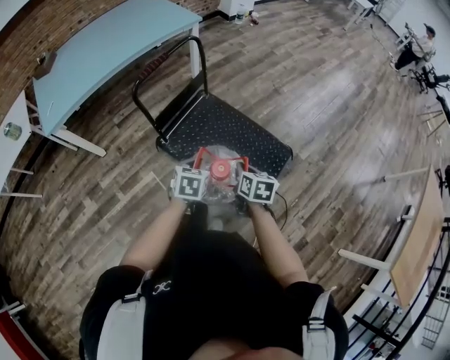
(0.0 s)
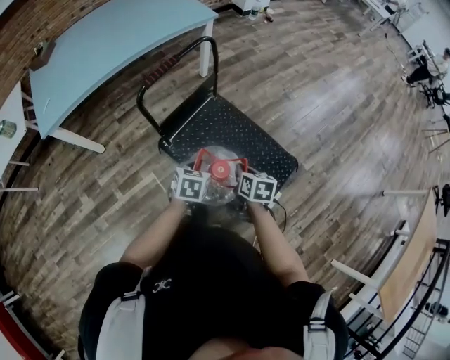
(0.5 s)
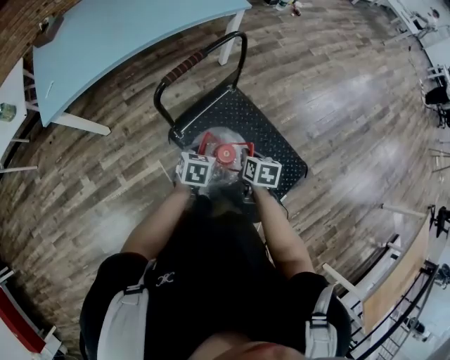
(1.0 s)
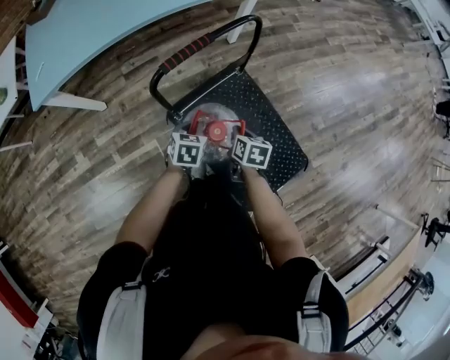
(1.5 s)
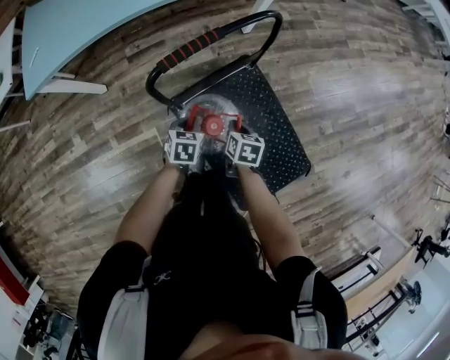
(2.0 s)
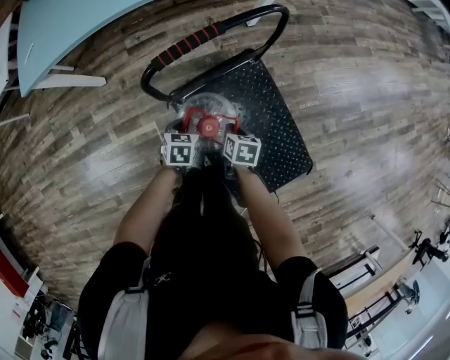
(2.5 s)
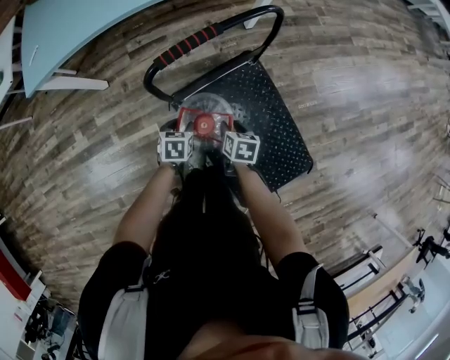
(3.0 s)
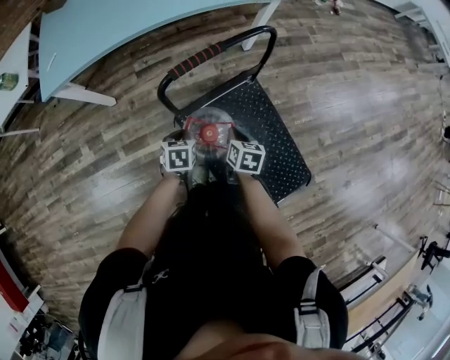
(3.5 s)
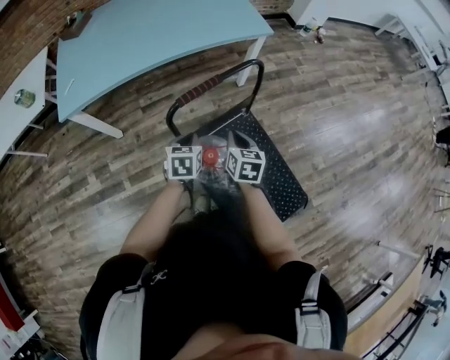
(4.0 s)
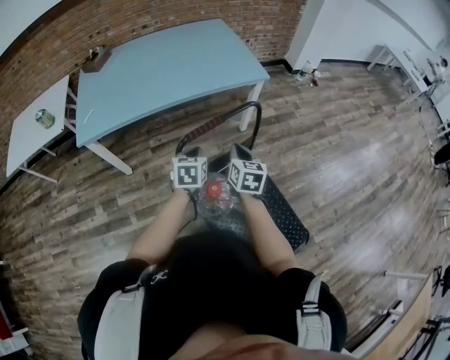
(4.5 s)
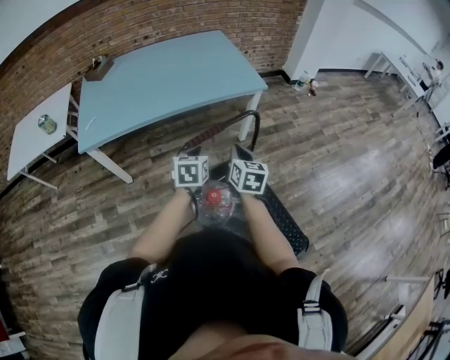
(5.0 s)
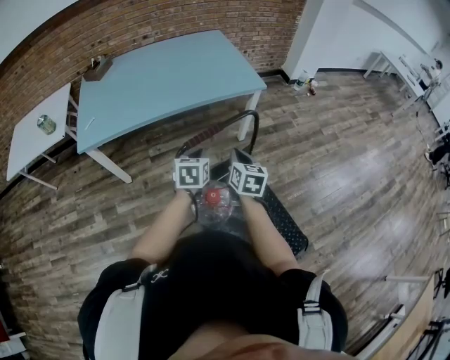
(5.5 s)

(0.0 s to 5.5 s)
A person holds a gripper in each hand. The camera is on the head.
0.0 s - 2.0 s: The grippers both shift forward, downward and to the left by some 35 cm. The left gripper rotates about 20 degrees. The right gripper changes its angle by approximately 20 degrees.
2.0 s - 3.5 s: The left gripper shifts roughly 5 cm to the left, and opens and closes again. The right gripper goes about 5 cm upward, and opens, then closes again.
3.5 s - 5.5 s: The left gripper goes about 25 cm upward and forward, and turns by some 30 degrees. Meanwhile the right gripper heads upward, covering approximately 25 cm, and changes its angle by approximately 30 degrees.

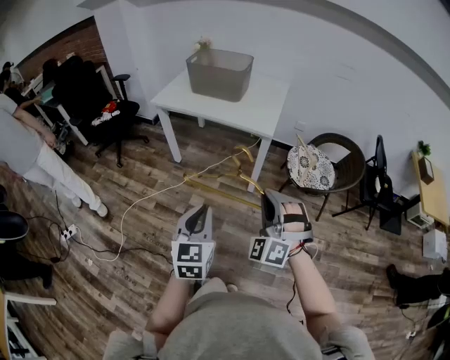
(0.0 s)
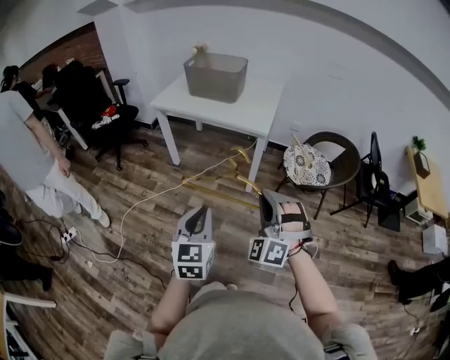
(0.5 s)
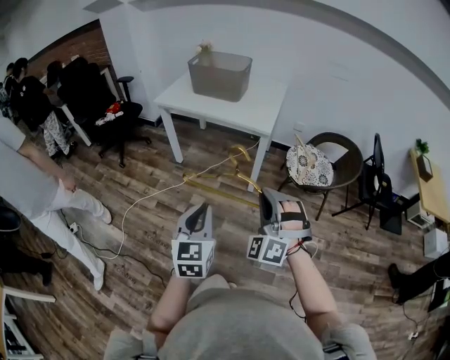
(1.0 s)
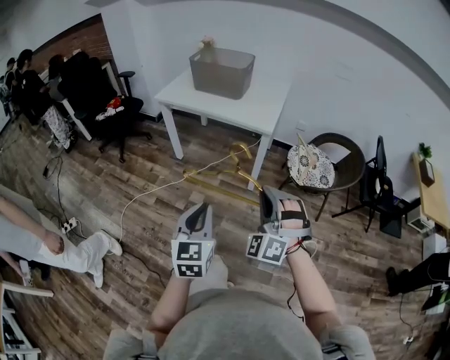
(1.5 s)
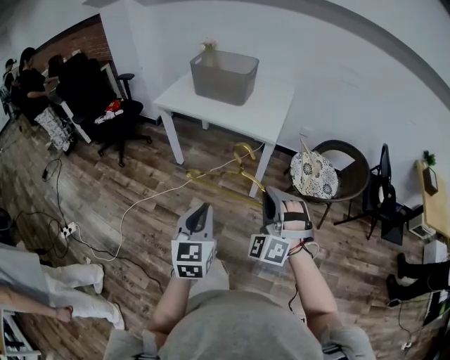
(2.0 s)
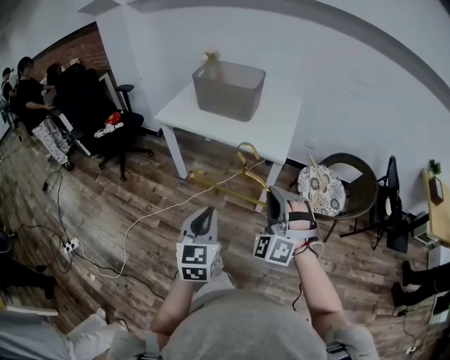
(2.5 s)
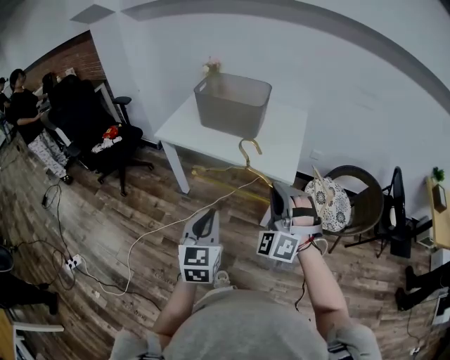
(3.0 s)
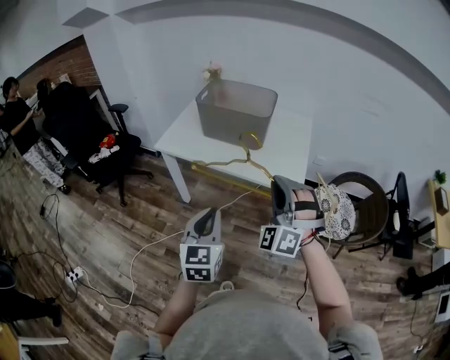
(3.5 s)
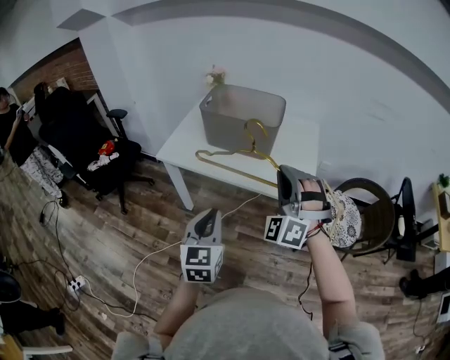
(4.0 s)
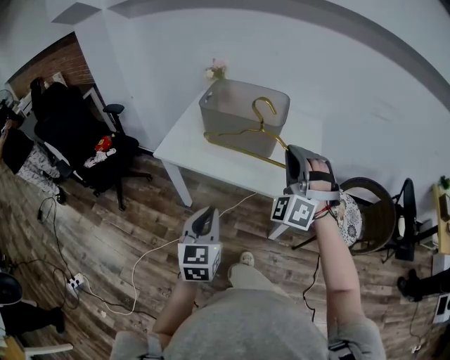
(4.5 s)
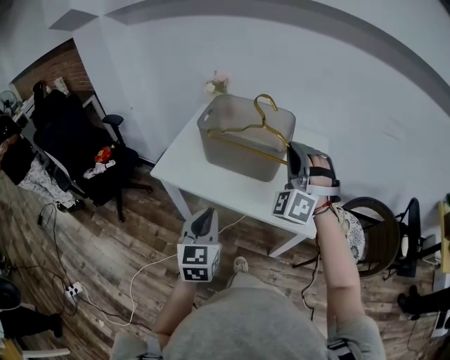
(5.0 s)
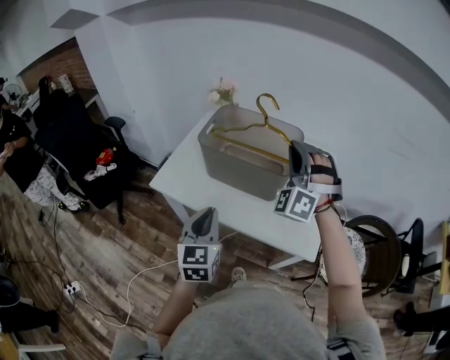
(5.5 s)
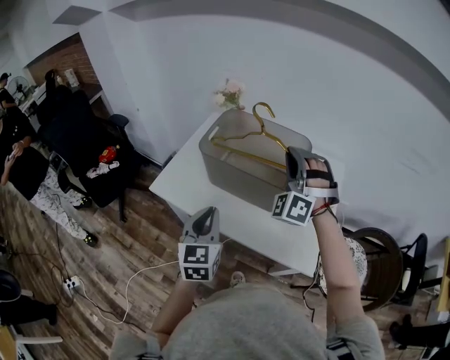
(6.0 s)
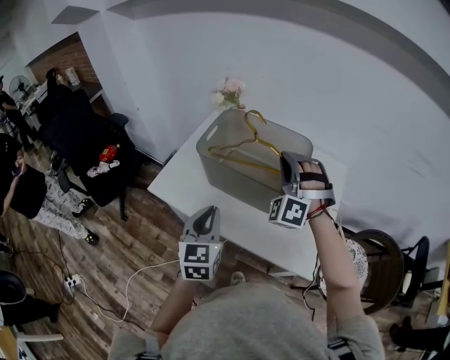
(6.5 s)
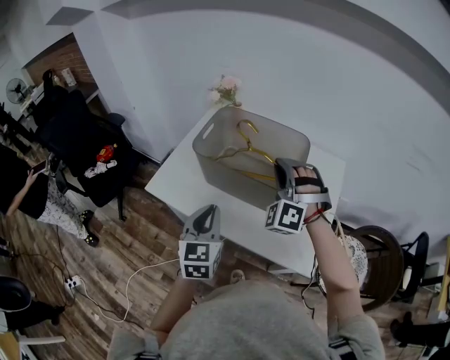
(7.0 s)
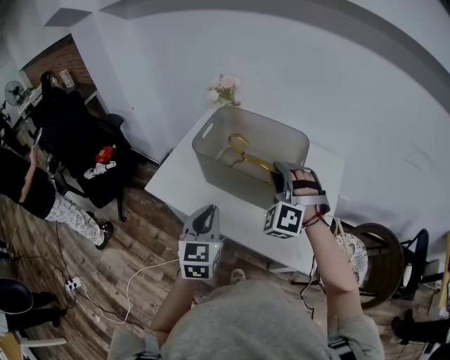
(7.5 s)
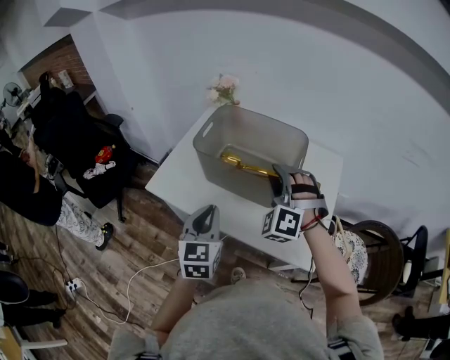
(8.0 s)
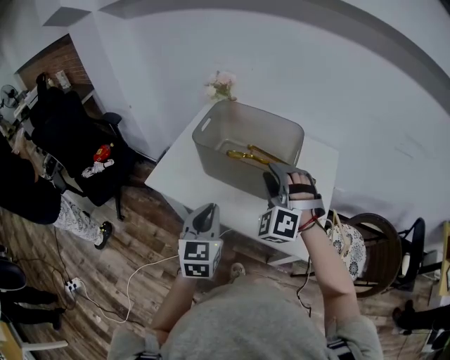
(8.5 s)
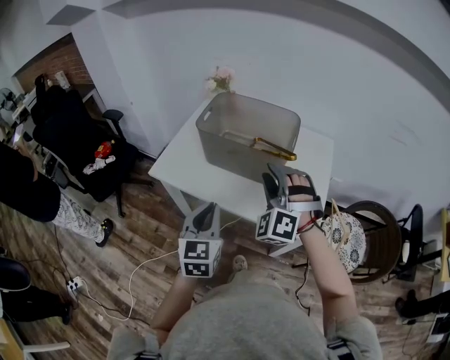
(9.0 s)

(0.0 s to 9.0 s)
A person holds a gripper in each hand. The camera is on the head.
0.0 s - 2.0 s: The left gripper travels backward and back again, some 5 cm each way.
2.0 s - 4.5 s: The pair of grippers is taken forward and to the left, roughly 40 cm.
4.5 s - 7.0 s: Both grippers move forward, roughly 25 cm.
7.0 s - 9.0 s: Both grippers travel together backward, about 15 cm. The right gripper opens up.

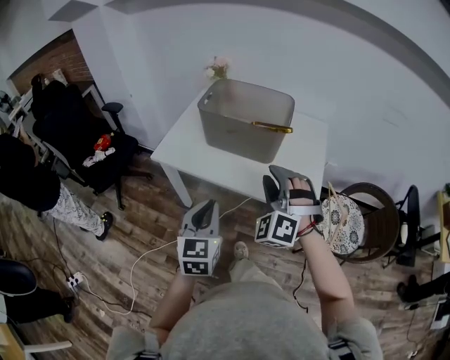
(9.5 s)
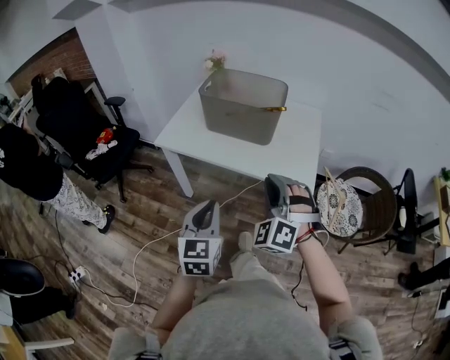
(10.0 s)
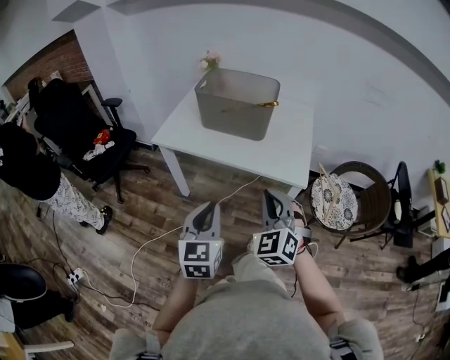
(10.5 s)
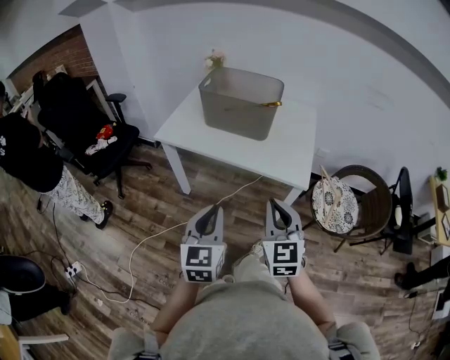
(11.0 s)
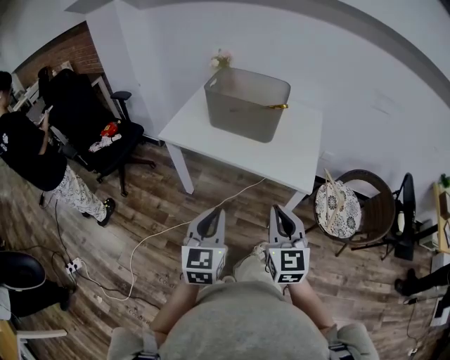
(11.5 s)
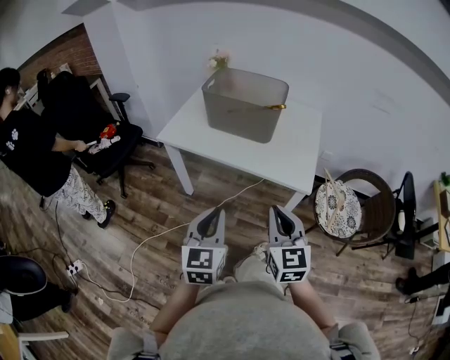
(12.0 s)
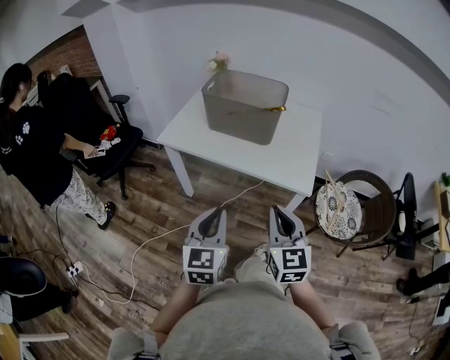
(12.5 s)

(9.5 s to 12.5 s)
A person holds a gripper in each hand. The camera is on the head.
9.5 s - 11.0 s: Both grippers travel together backward, about 20 cm. The right gripper twists some 60 degrees clockwise, seen from behind, and closes up.
11.0 s - 12.5 s: The grippers stay close to where they were, moving slightly.

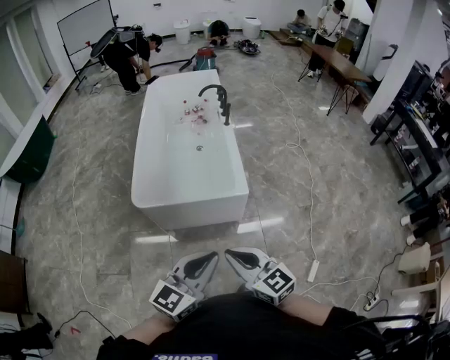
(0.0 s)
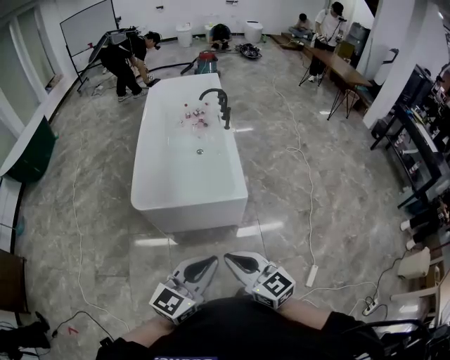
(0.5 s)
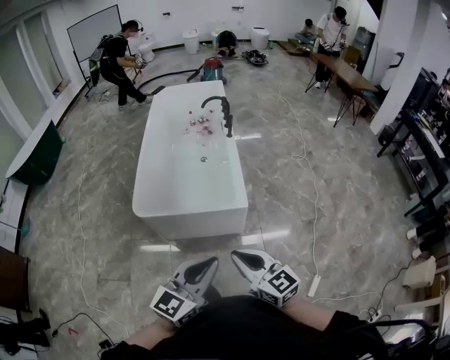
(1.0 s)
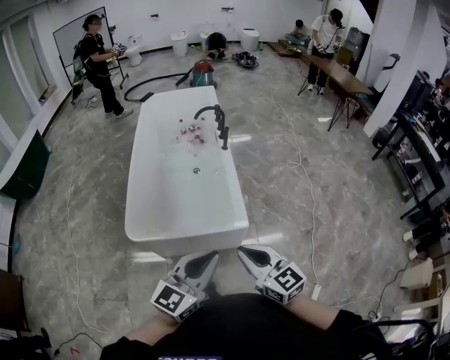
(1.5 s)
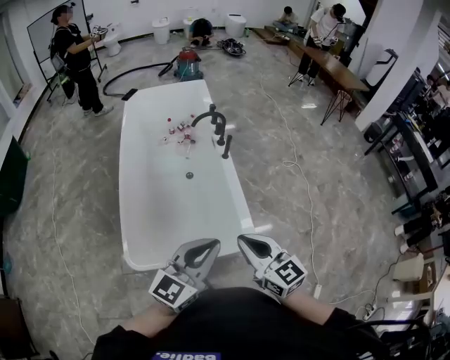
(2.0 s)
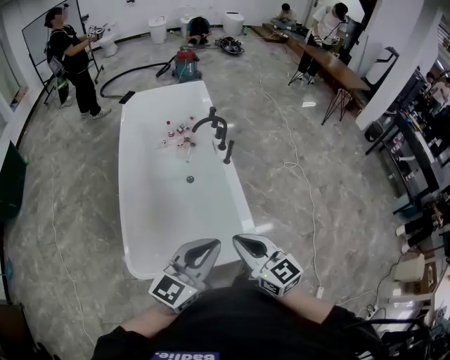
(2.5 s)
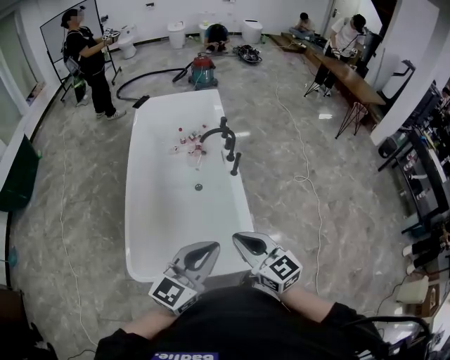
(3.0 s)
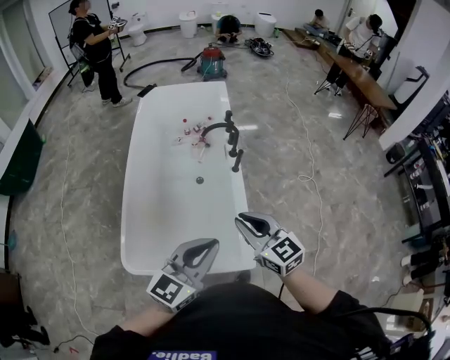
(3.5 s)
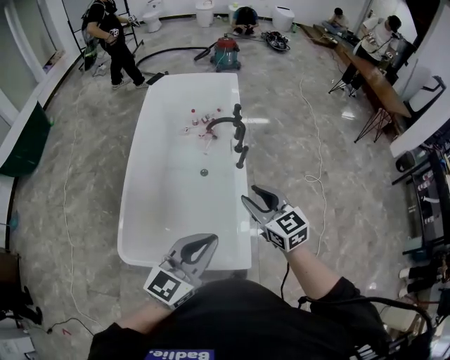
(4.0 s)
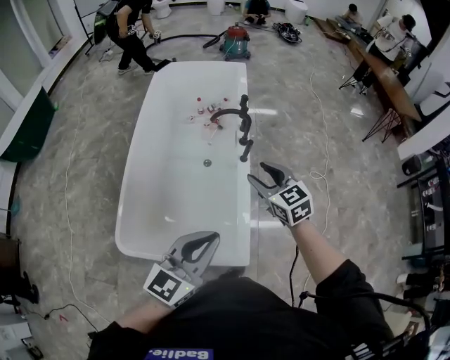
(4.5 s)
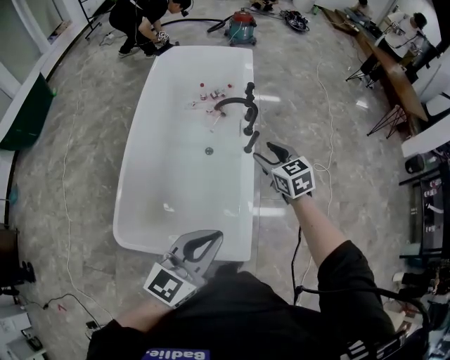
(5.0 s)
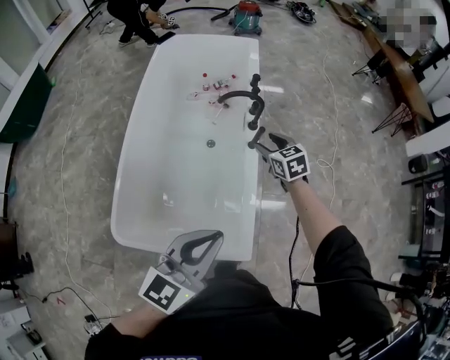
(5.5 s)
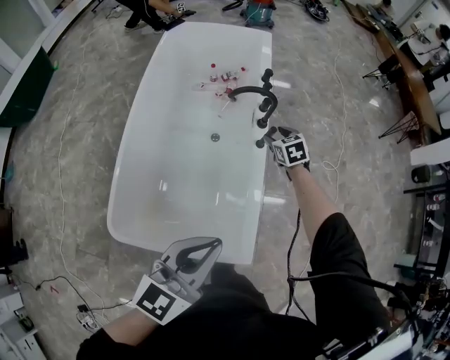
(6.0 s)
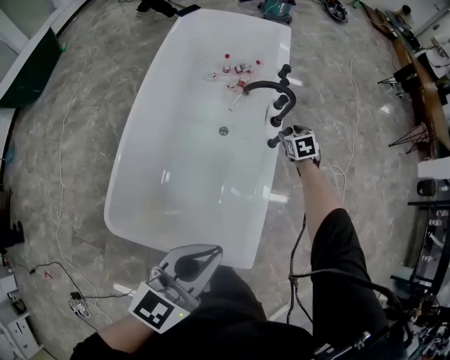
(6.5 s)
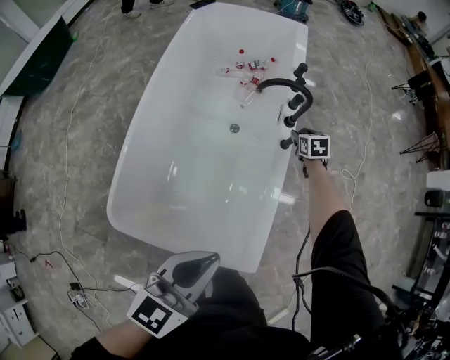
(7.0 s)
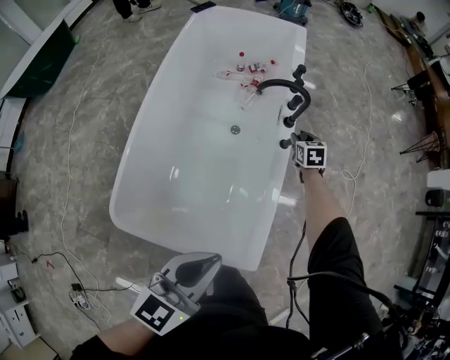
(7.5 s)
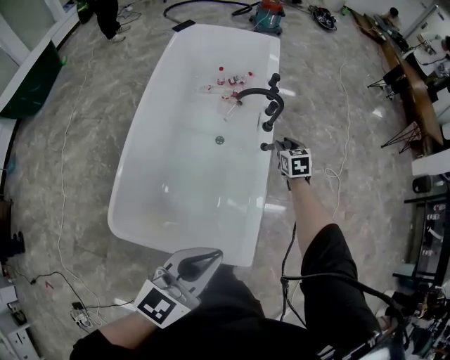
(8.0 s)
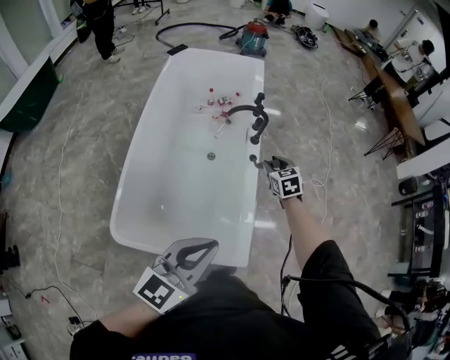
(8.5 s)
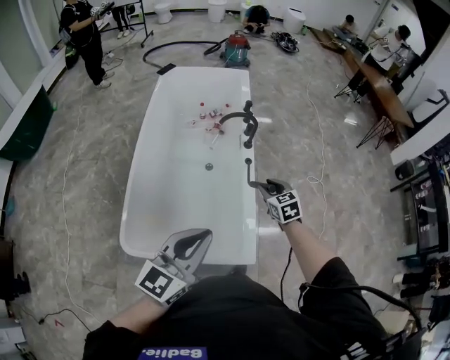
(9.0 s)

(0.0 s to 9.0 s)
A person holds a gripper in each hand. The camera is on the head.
0.0 s - 2.0 s: Both grippers are carried forward, approximately 40 cm.
2.0 s - 4.5 s: The left gripper heads forward and to the right, covering about 20 cm. Meanwhile the right gripper is displaced forward by about 35 cm, swivels about 20 degrees, and opens.
4.5 s - 7.0 s: The right gripper shifts some 50 cm downward and forward, and changes its angle by approximately 30 degrees, while the left gripper moves downward, forward and to the left, approximately 15 cm.
7.0 s - 9.0 s: The right gripper moves backward and upward, roughly 40 cm. Meanwhile the left gripper moves upward and backward, roughly 20 cm.
